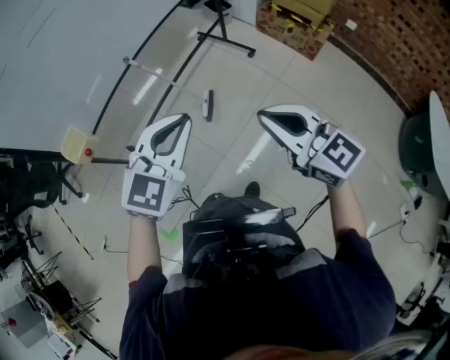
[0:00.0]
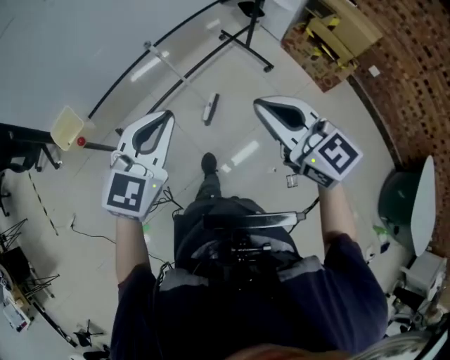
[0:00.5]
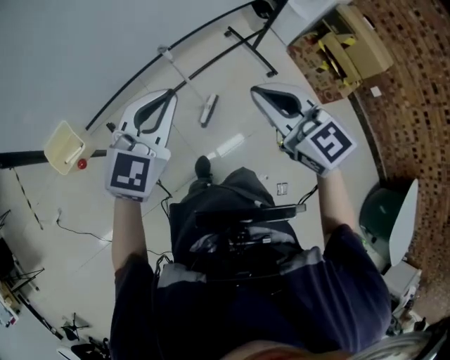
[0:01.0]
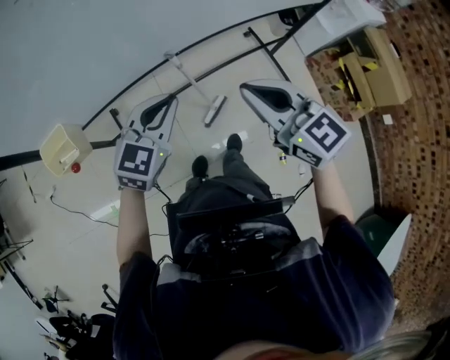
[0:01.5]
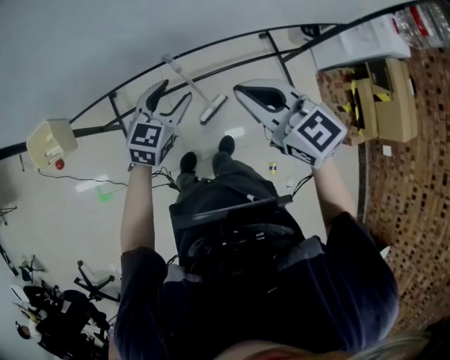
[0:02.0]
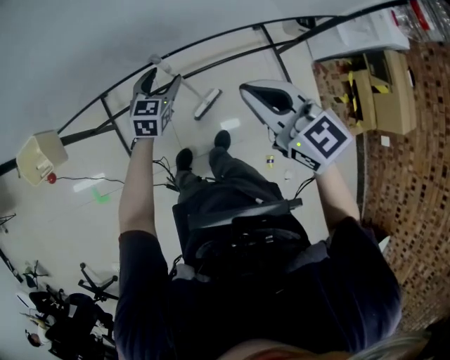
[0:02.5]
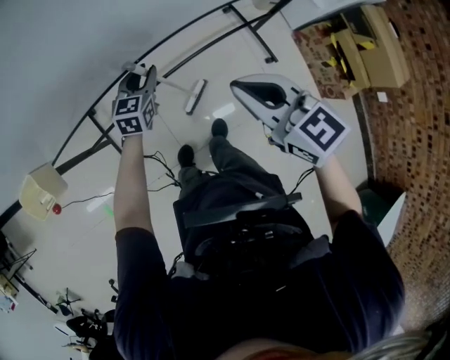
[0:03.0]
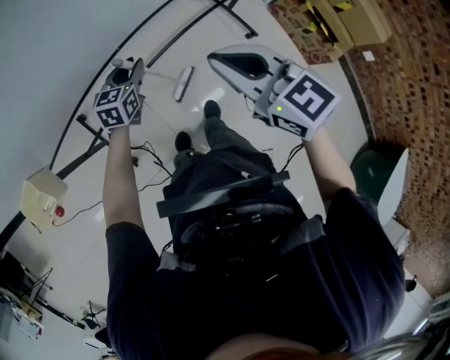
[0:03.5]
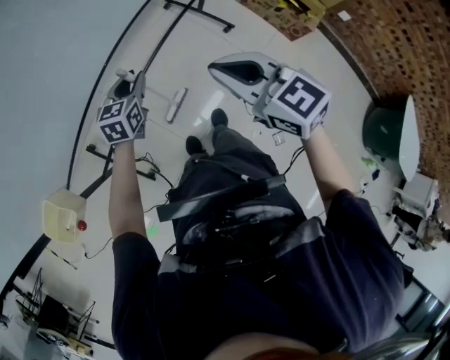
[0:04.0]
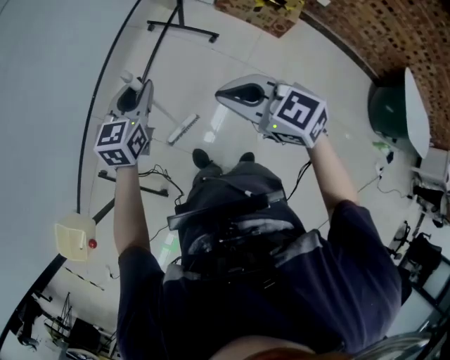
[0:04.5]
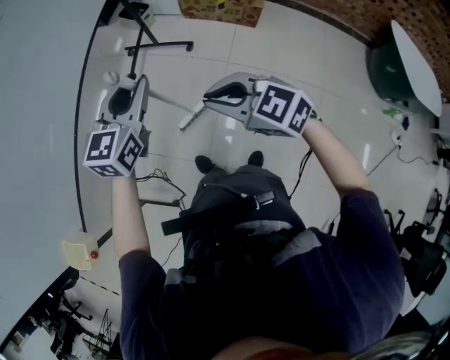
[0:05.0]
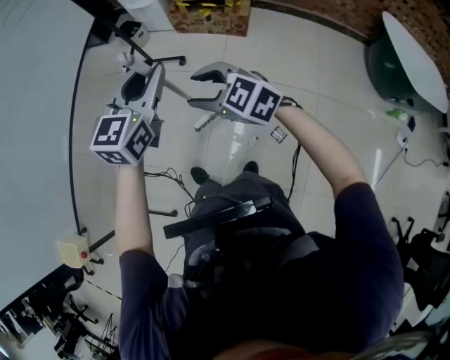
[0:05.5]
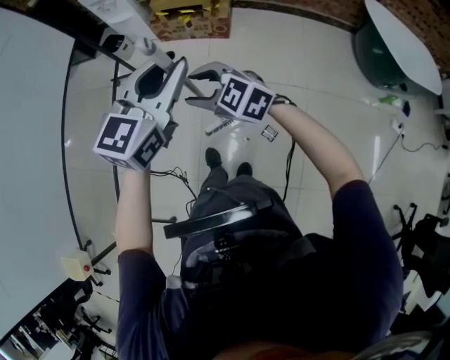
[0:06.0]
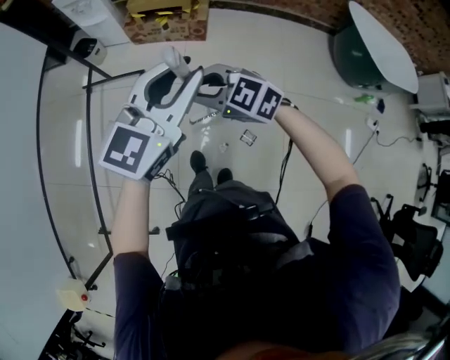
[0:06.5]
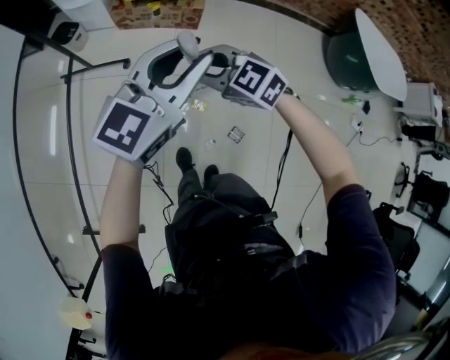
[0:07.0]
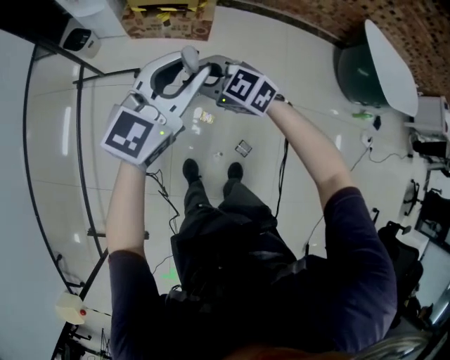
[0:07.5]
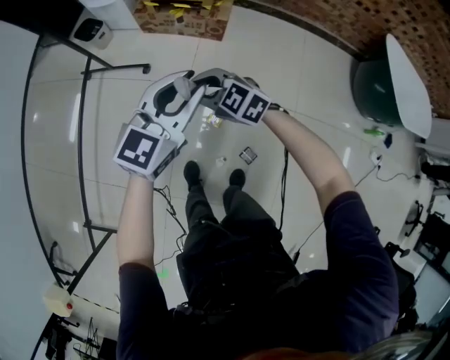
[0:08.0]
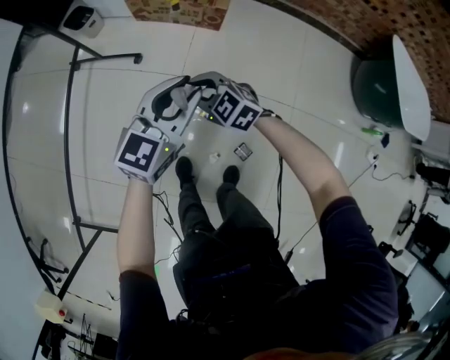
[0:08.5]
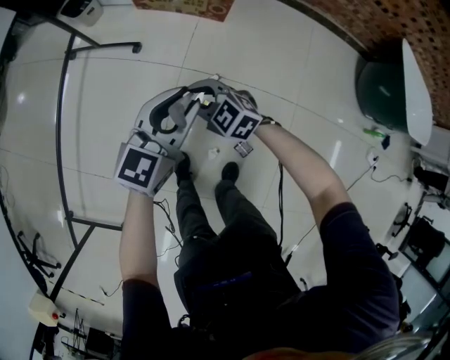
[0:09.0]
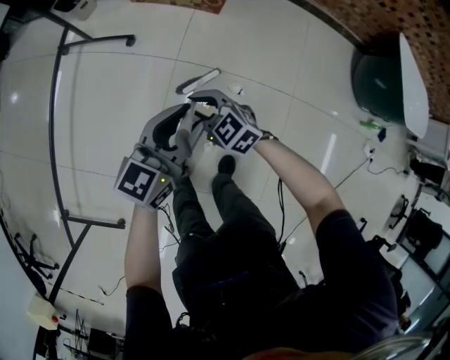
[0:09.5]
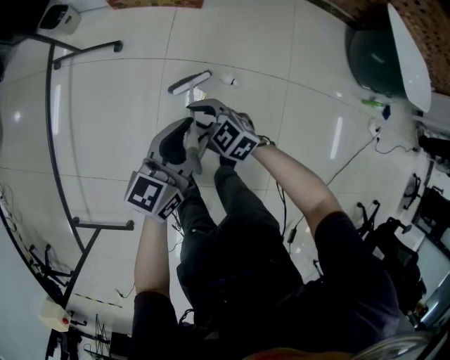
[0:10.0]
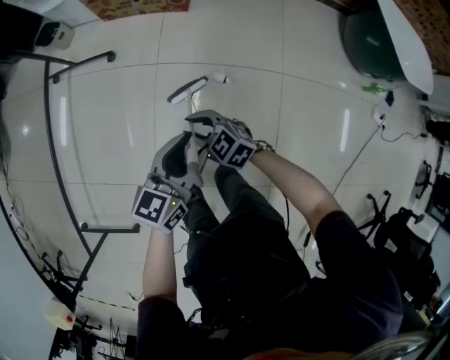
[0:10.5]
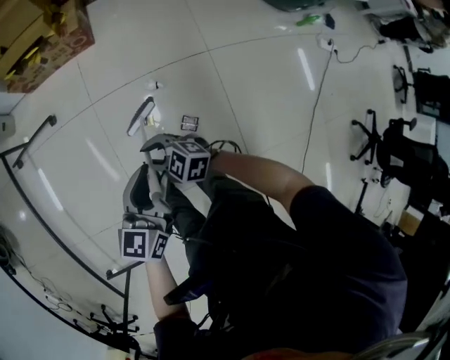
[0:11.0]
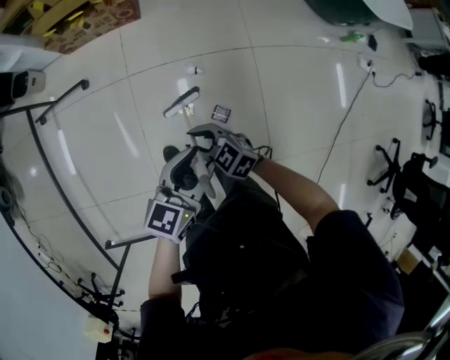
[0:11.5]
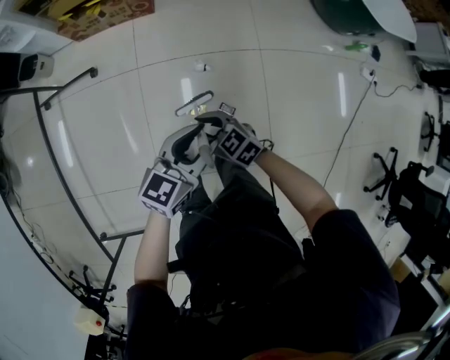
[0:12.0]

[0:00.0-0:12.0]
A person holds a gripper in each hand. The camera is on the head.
0:00.0 to 0:02.0: The two grippers travel together, approximately 50 cm. The right gripper turns by roughly 40 degrees. The left gripper changes its angle by some 40 degrees, and opens up.
0:02.0 to 0:04.0: The left gripper turns by approximately 20 degrees, and closes its fingers. The right gripper moves roughly 10 cm, and changes its angle by about 30 degrees.
0:04.0 to 0:06.0: Both grippers are carried some 50 cm. The left gripper changes its angle by about 50 degrees. The right gripper opens its fingers.
0:06.0 to 0:08.0: Both grippers travel together forward and downward, approximately 25 cm. The right gripper closes.
0:08.0 to 0:10.0: Both grippers move downward and backward, some 20 cm. The left gripper rotates approximately 20 degrees.
0:10.0 to 0:12.0: The grippers both shift to the right and backward by roughly 15 cm. The left gripper rotates approximately 20 degrees.

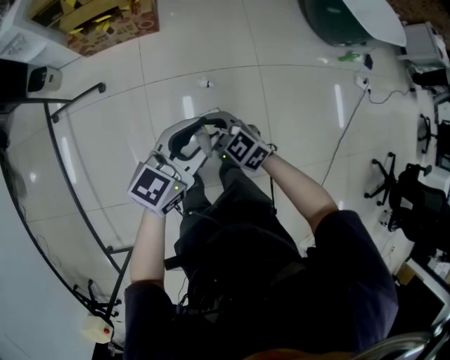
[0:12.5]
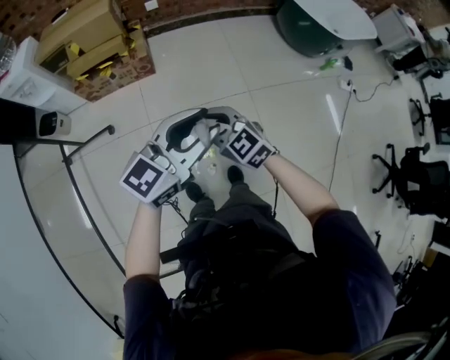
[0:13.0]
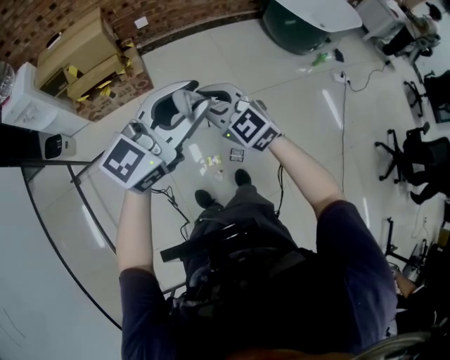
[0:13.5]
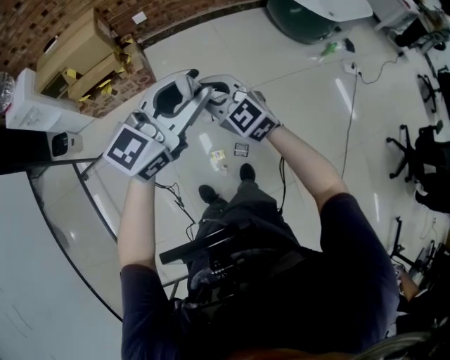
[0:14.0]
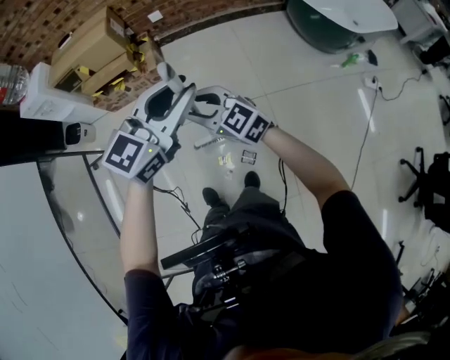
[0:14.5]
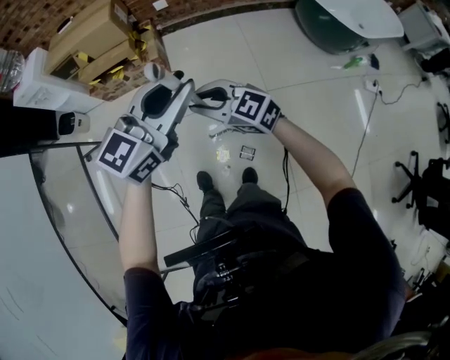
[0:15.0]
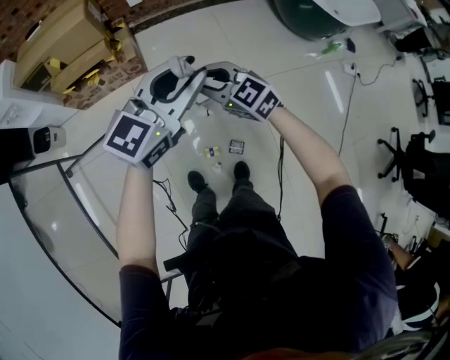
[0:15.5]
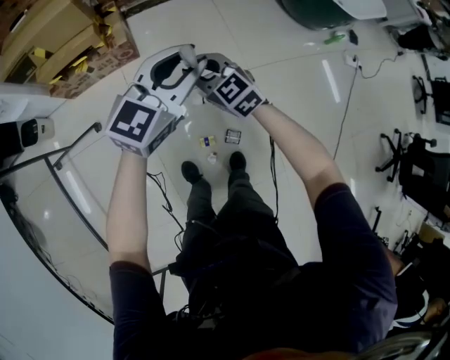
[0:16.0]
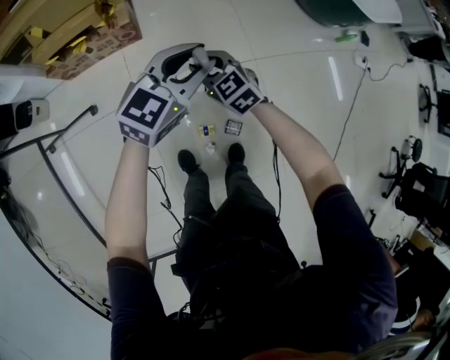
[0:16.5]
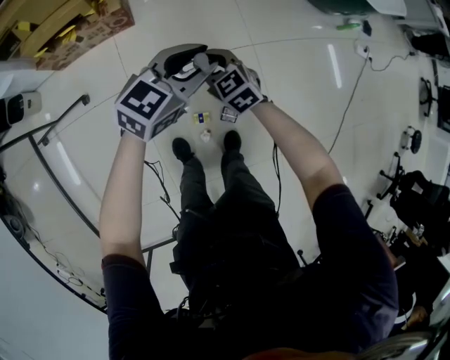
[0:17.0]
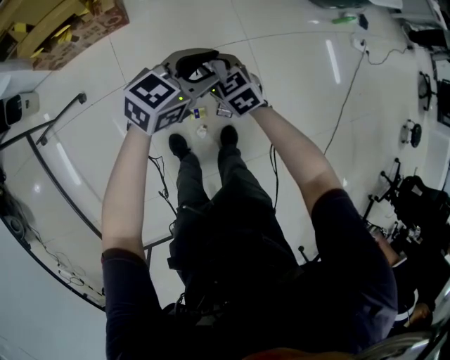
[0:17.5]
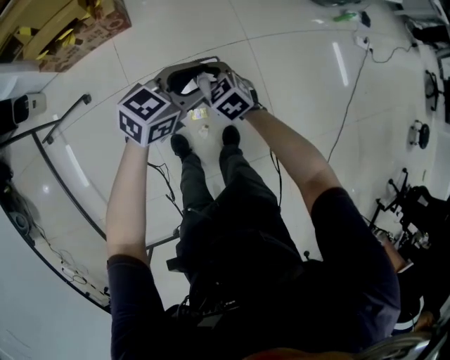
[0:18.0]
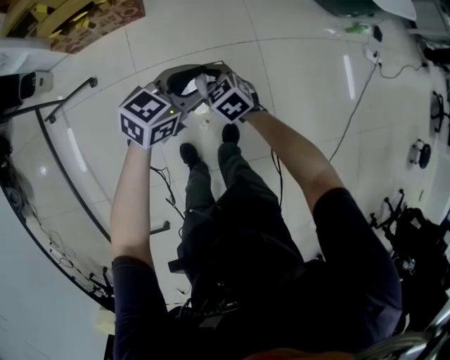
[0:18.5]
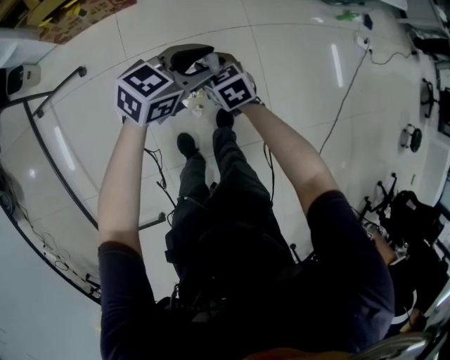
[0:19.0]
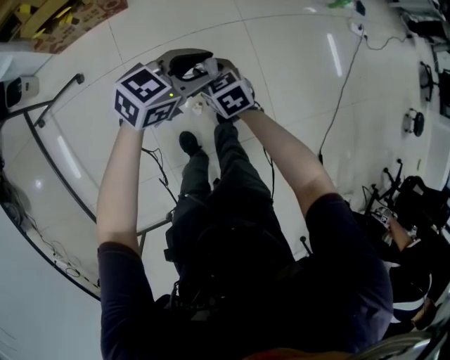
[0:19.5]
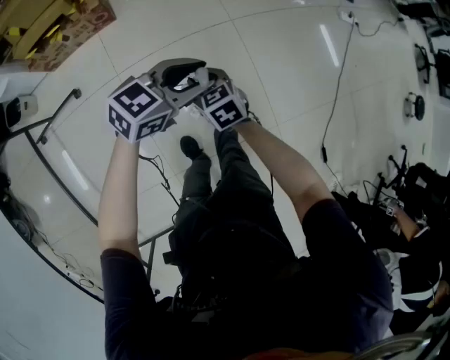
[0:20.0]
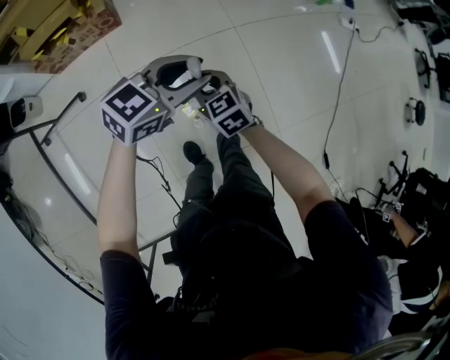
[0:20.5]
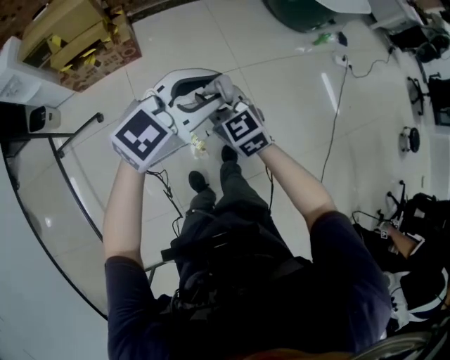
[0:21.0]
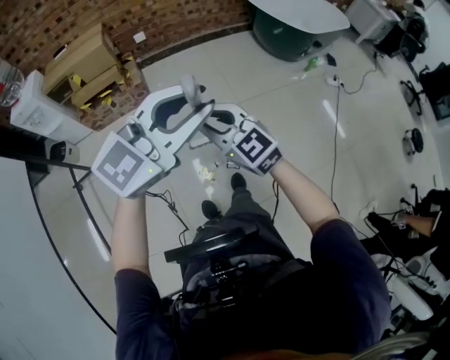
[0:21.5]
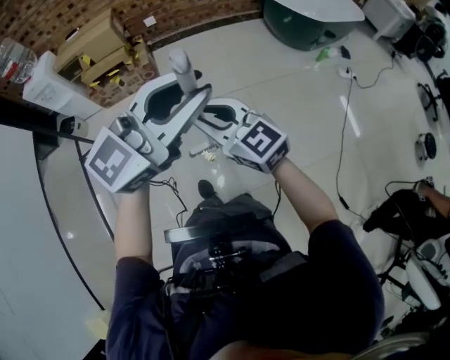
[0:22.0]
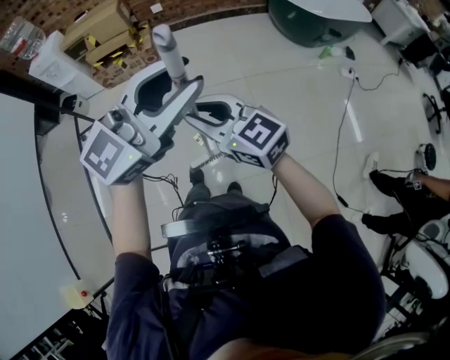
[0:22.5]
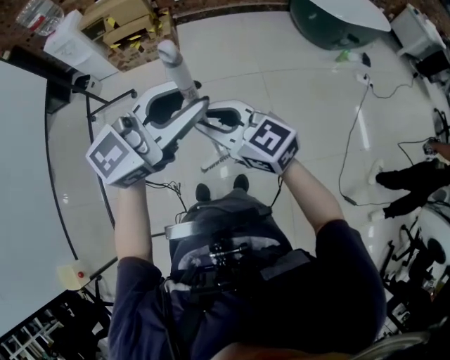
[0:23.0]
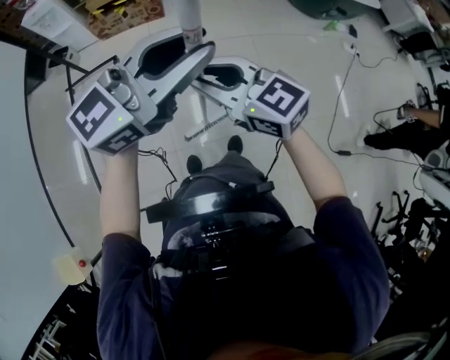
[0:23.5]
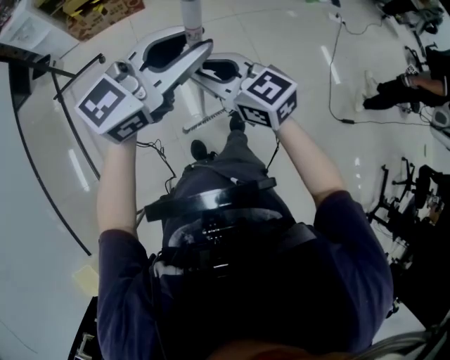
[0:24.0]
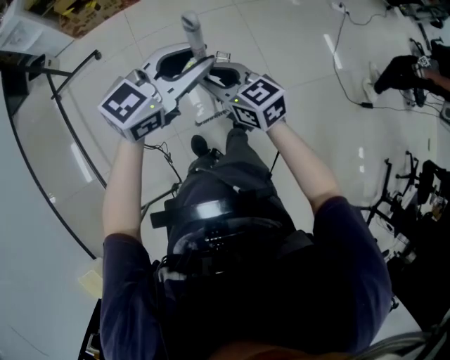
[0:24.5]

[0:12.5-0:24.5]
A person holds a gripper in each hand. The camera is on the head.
0:12.5 to 0:14.5: The left gripper shifts about 25 cm upward, forward and to the right, and rotates some 20 degrees; the right gripper travels upward and forward by approximately 25 cm.
0:14.5 to 0:16.5: The right gripper travels downward and forward by approximately 25 cm, and rotates approximately 20 degrees. Meanwhile the left gripper travels downward by about 20 cm.
0:16.5 to 0:18.5: The two grippers go about 15 cm backward, to the right and downward. The left gripper changes its angle by approximately 20 degrees.
0:18.5 to 0:20.5: The left gripper shifts about 10 cm upward and backward. Meanwhile the right gripper moves backward and upward, some 10 cm.
0:20.5 to 0:22.5: The two grippers go some 40 cm upward and backward. The right gripper changes its angle by about 40 degrees; the left gripper rotates approximately 40 degrees.
0:22.5 to 0:24.5: Both grippers move downward and backward, about 30 cm. The left gripper changes its angle by roughly 20 degrees; the right gripper turns by about 20 degrees.

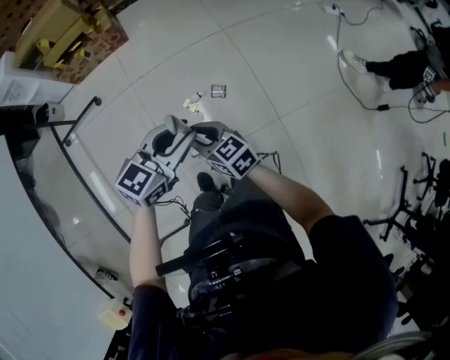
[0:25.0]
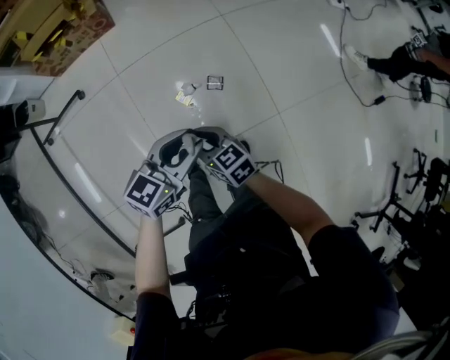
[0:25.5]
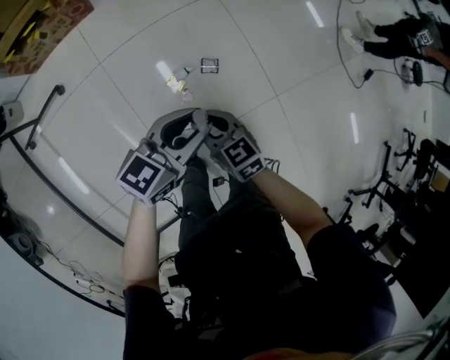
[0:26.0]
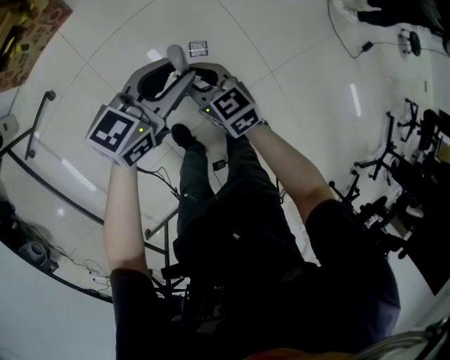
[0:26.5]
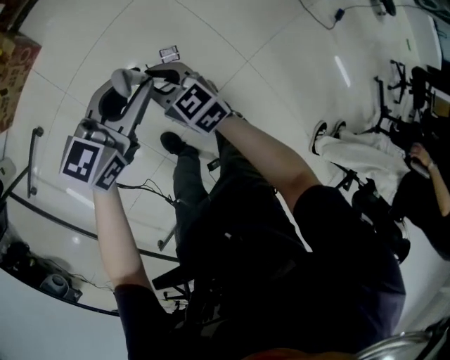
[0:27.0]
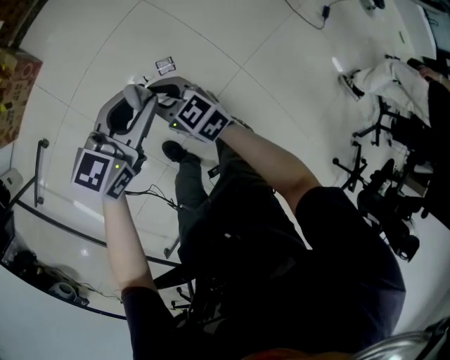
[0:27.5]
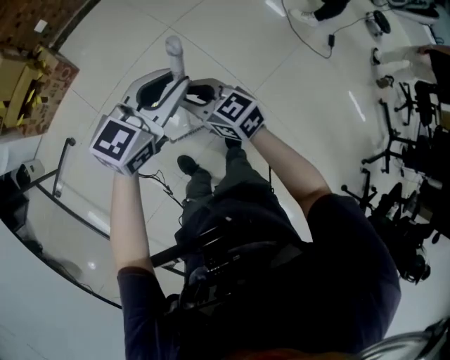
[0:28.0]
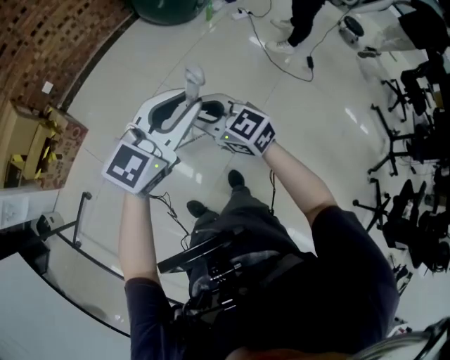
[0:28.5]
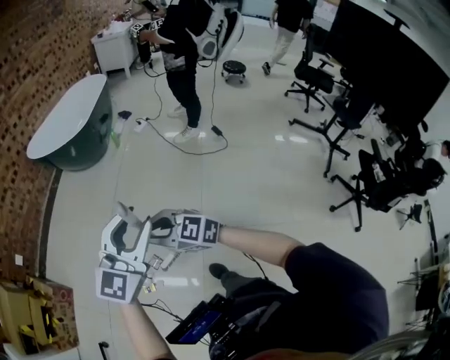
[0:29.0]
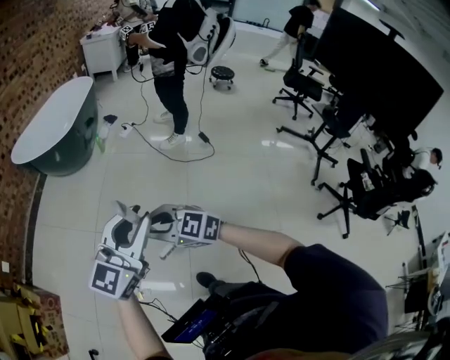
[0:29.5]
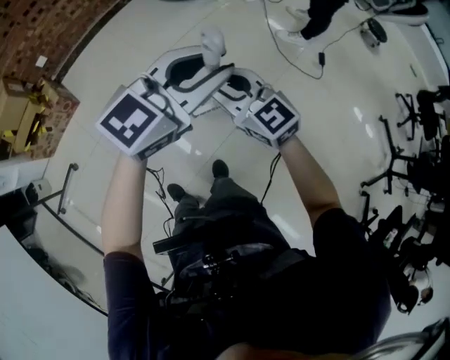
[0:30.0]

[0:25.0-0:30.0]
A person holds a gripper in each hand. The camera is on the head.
0:25.0 to 0:27.5: The two grippers go roughly 15 cm forward and downward.
0:27.5 to 0:30.0: The right gripper is displaced upward, to the right and forward by roughly 40 cm, and turns by some 20 degrees. Meanwhile the left gripper goes about 40 cm upward and to the right, and turns by some 30 degrees.
